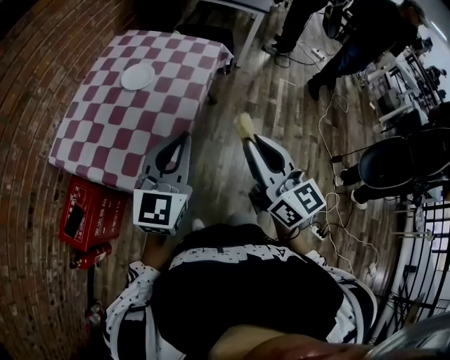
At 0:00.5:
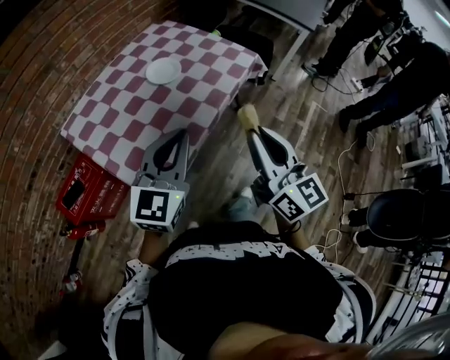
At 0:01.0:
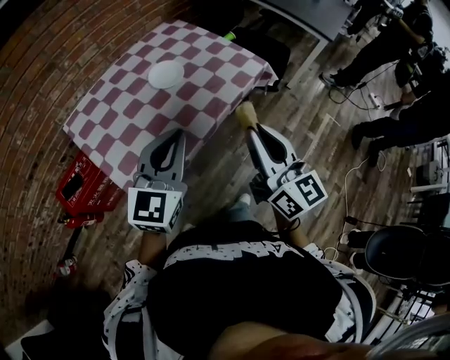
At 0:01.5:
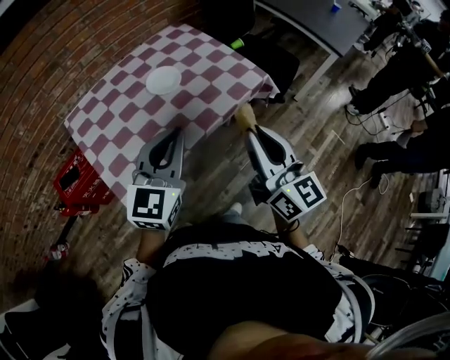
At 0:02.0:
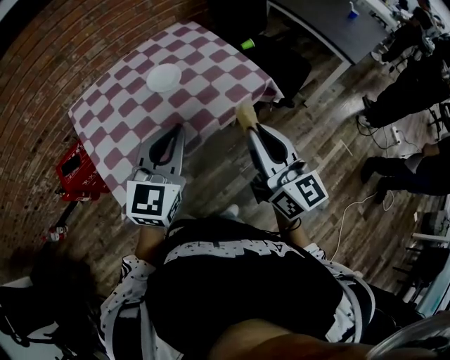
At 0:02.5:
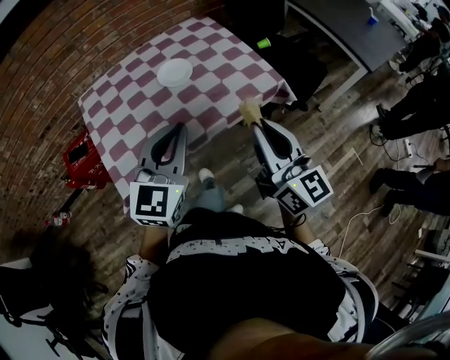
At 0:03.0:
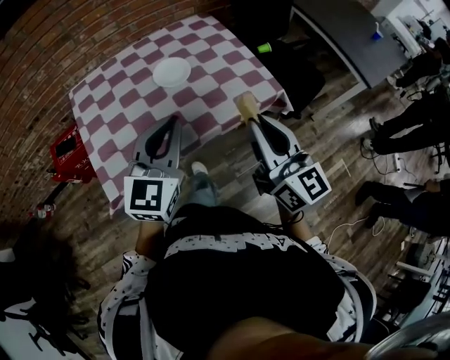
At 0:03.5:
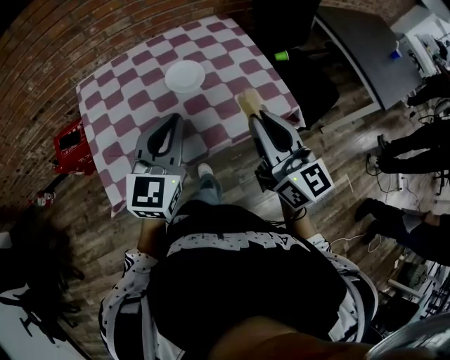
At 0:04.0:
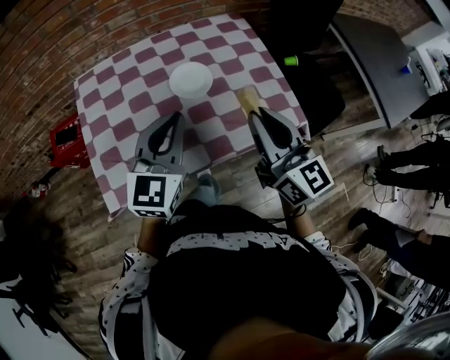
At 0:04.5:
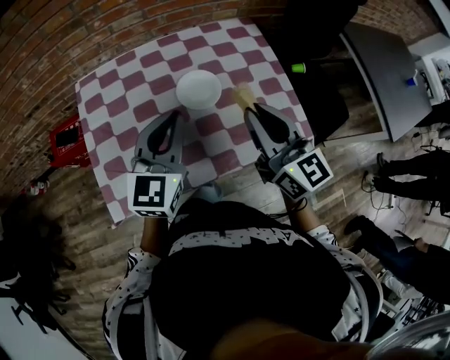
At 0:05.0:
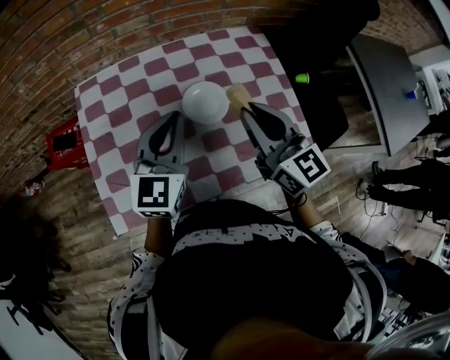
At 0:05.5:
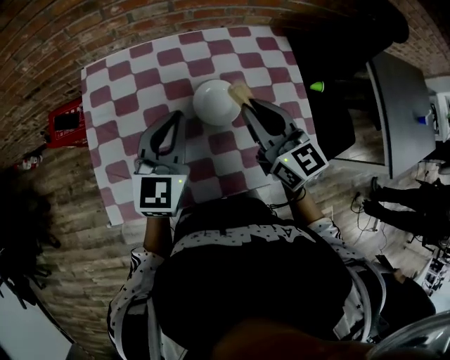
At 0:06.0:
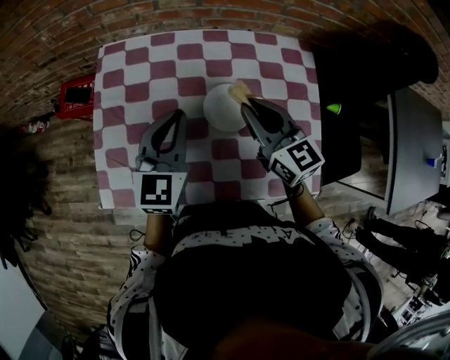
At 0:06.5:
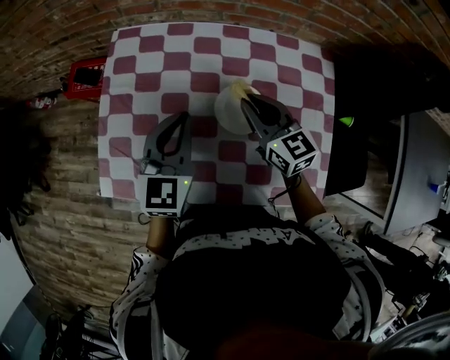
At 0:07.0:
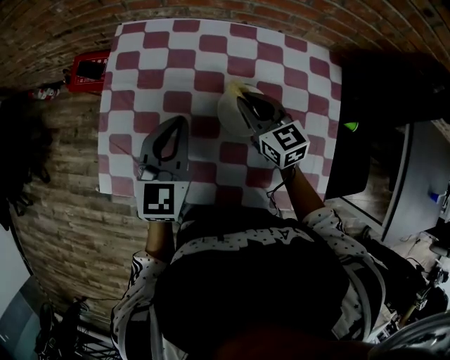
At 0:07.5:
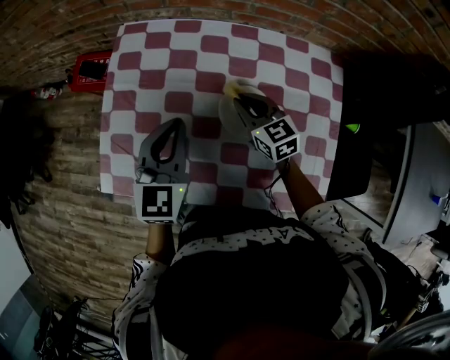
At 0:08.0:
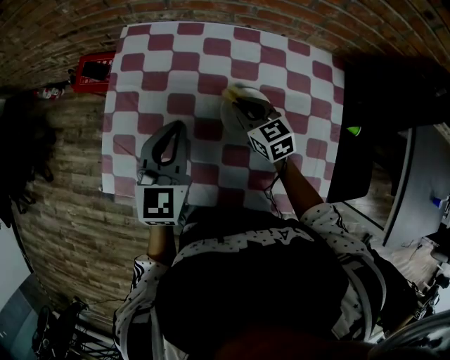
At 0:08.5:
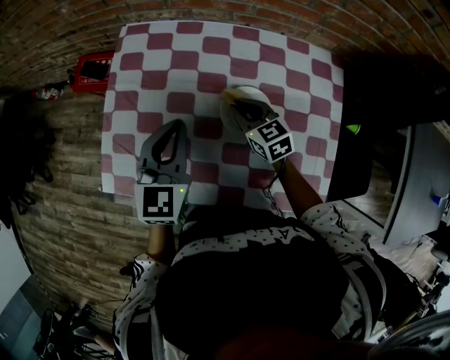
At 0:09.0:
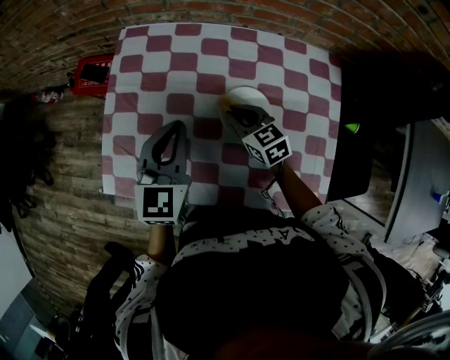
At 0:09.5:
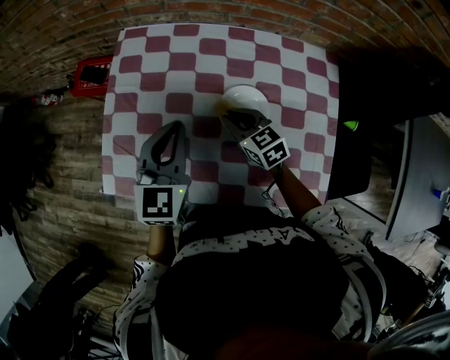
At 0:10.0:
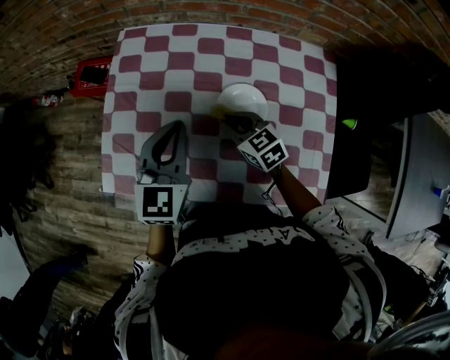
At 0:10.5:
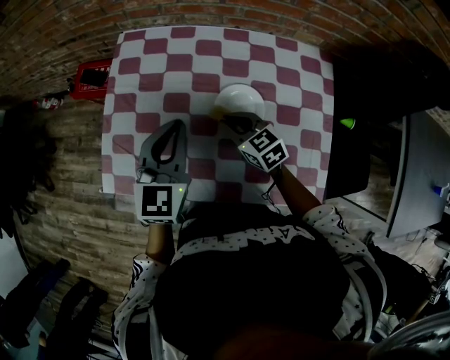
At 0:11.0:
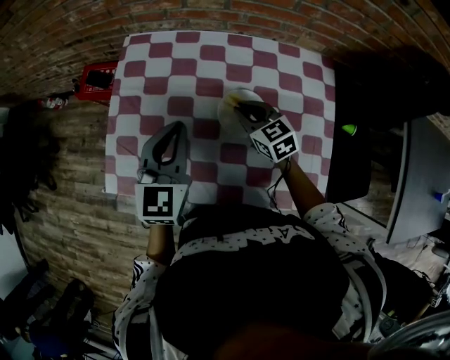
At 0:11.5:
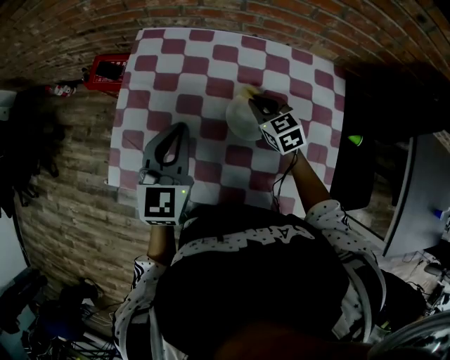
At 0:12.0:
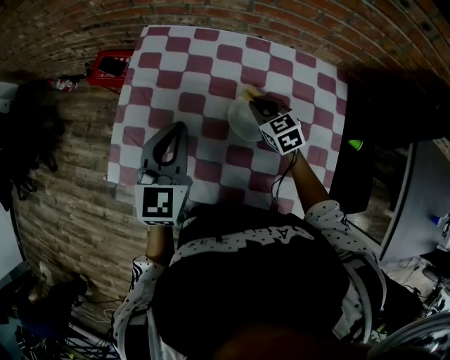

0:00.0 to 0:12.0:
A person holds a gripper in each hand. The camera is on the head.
0:00.0 to 0:02.0: The right gripper changes place by roughly 30 cm, and swivels approximately 30 degrees. The left gripper ends up roughly 20 cm from where it was, and turns by roughly 40 degrees.
0:02.0 to 0:04.0: Both grippers move forward, about 20 cm.
0:04.0 to 0:06.0: The two grippers go roughly 20 cm forward. The left gripper rotates roughly 20 degrees. Meanwhile the right gripper swivels some 30 degrees.
0:06.0 to 0:08.0: The right gripper goes some 15 cm downward and forward, and changes its angle by about 20 degrees.
0:08.0 to 0:10.0: The right gripper heads backward, covering some 5 cm.
0:10.0 to 0:12.0: The right gripper shifts roughly 10 cm to the right and forward.

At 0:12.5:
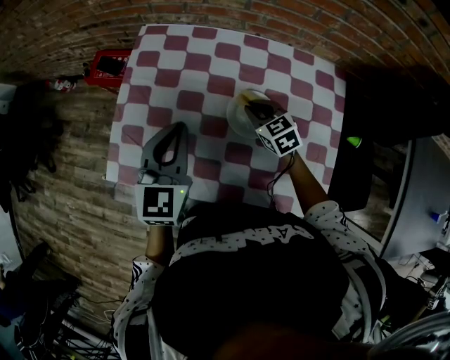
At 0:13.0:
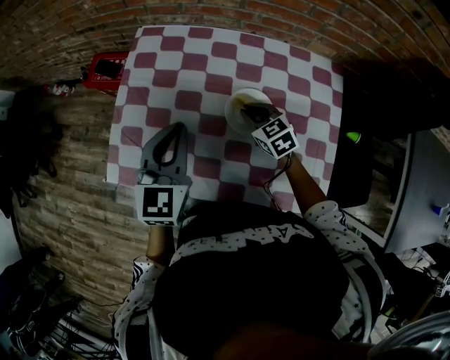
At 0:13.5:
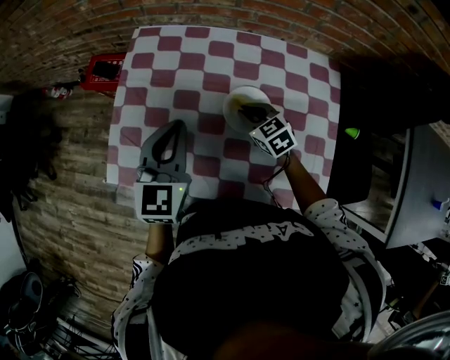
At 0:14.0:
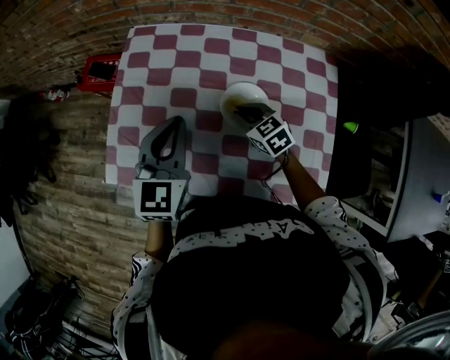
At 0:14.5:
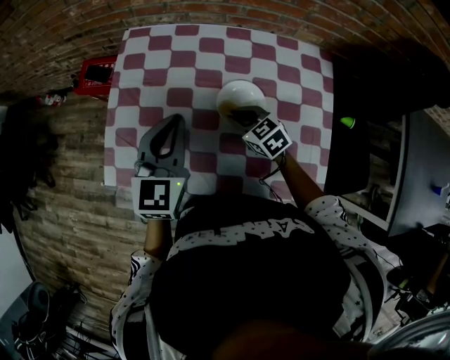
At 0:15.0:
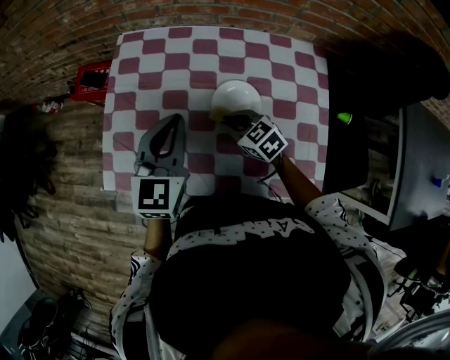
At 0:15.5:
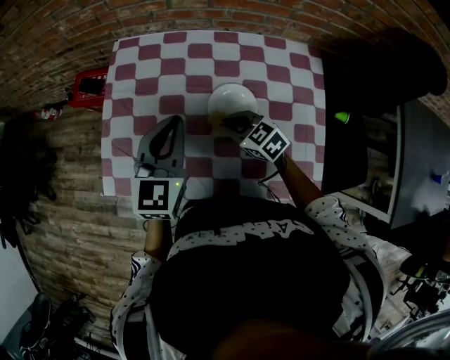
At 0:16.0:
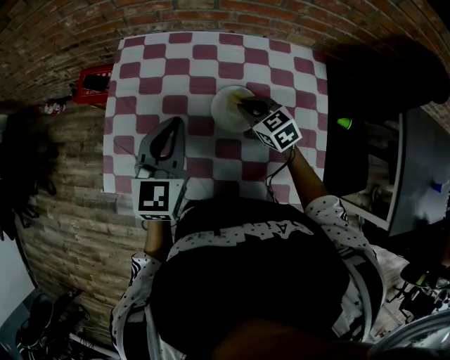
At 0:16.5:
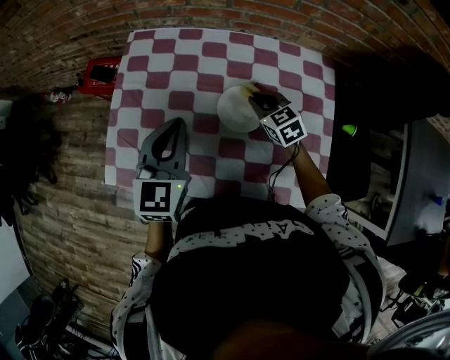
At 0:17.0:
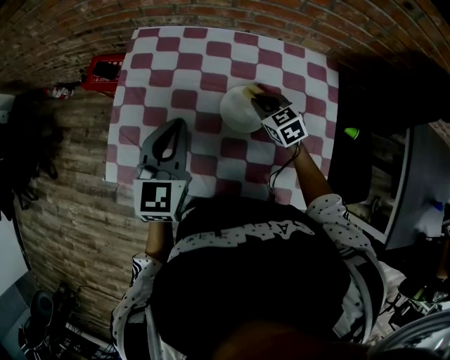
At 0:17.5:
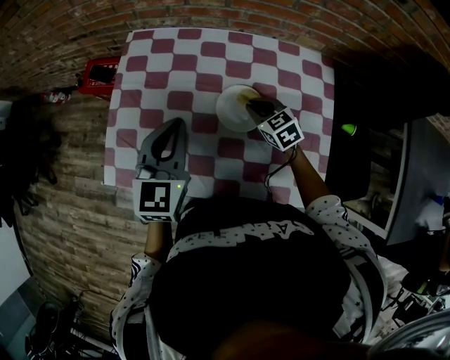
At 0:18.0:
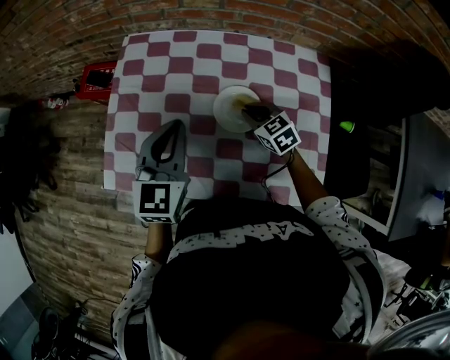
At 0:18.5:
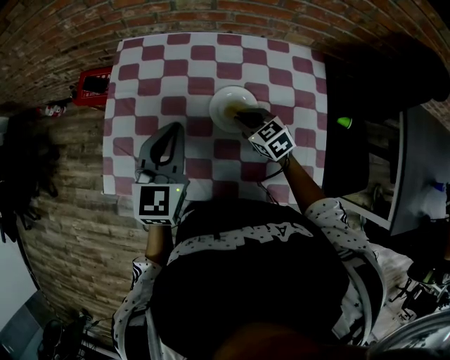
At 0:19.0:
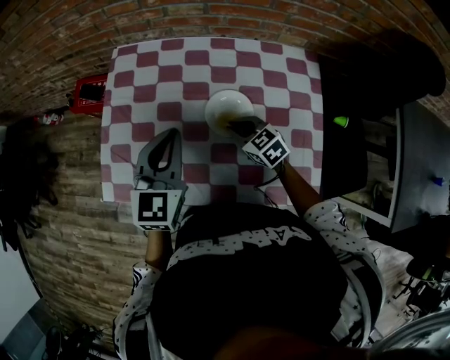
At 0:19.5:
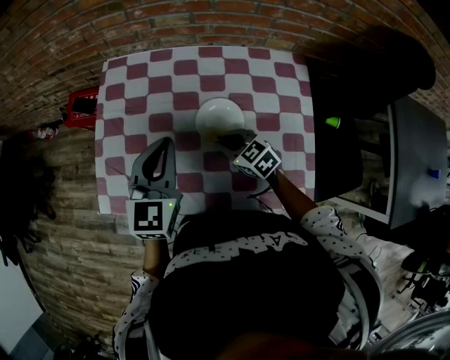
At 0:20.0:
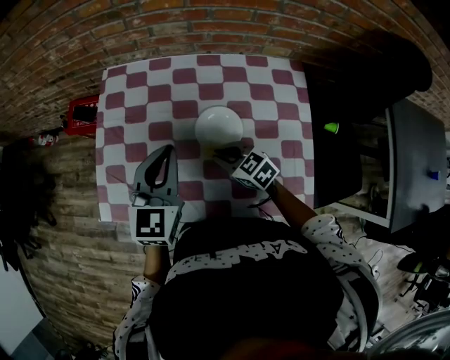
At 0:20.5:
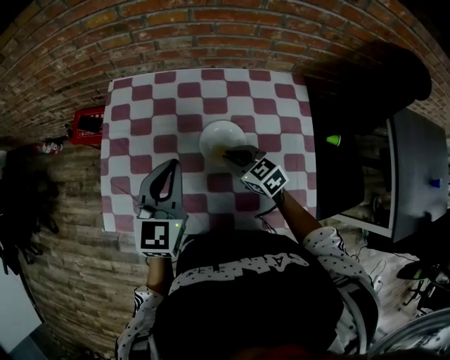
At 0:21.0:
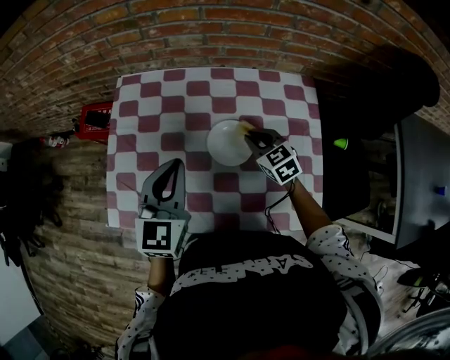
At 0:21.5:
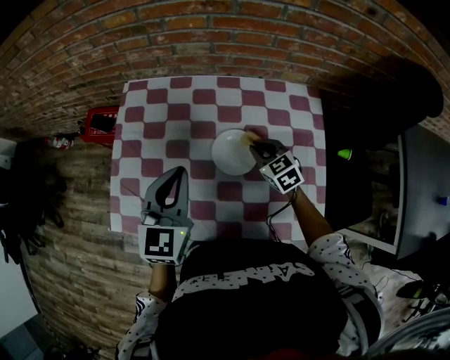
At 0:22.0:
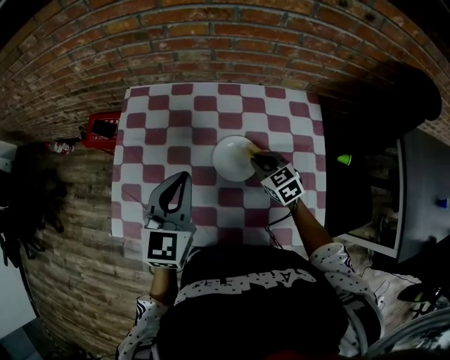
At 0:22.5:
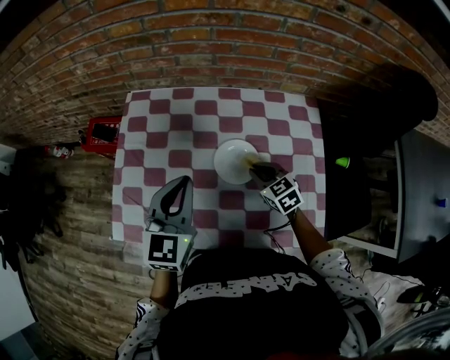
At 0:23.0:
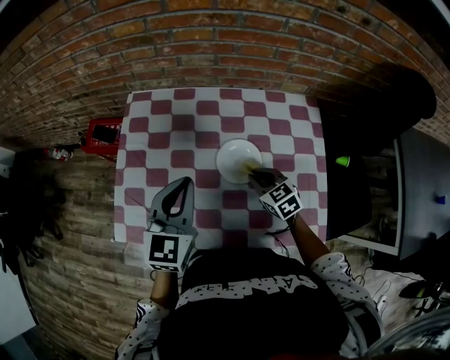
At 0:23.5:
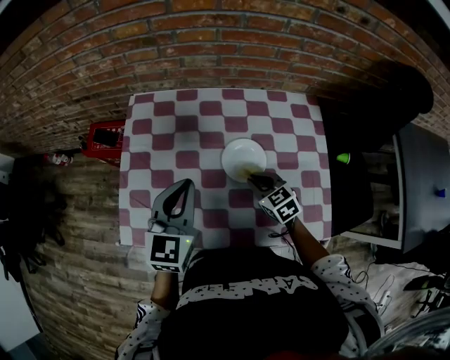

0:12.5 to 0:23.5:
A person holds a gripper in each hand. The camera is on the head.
0:12.5 to 0:14.5: The right gripper shifts about 5 cm backward.
0:14.5 to 0:16.0: The right gripper is displaced to the right by some 5 cm.
0:16.0 to 0:18.0: There are only small adjustments of the grippers.
0:18.0 to 0:20.0: The right gripper moves to the left and backward, approximately 10 cm.
0:20.0 to 0:21.5: The right gripper travels to the right and forward by some 15 cm, and changes its angle by some 20 degrees.
0:21.5 to 0:23.5: The right gripper heads backward and to the left, covering approximately 10 cm.

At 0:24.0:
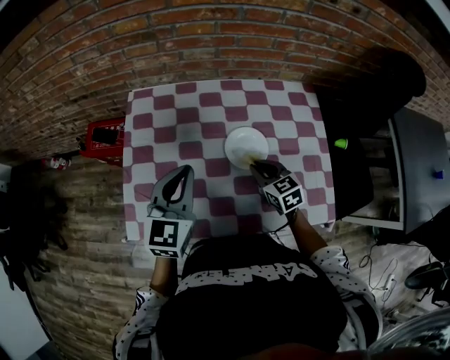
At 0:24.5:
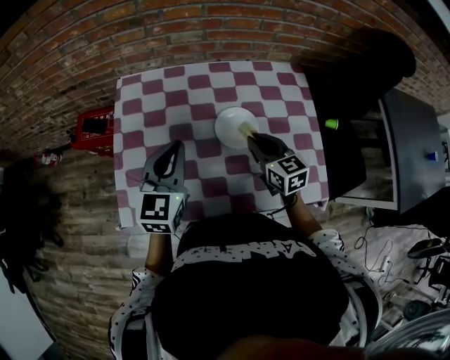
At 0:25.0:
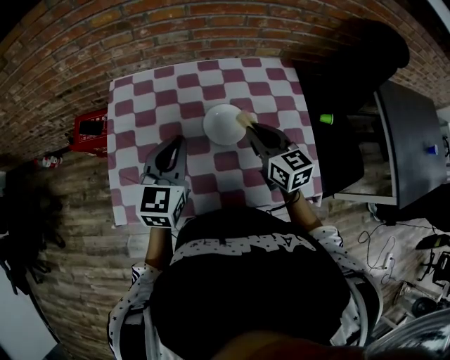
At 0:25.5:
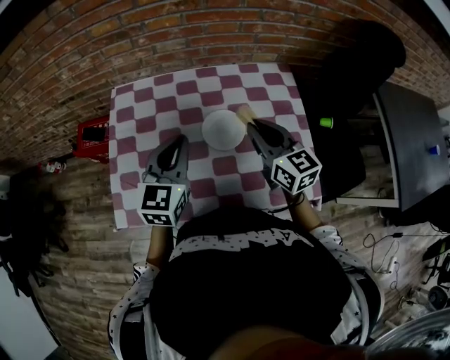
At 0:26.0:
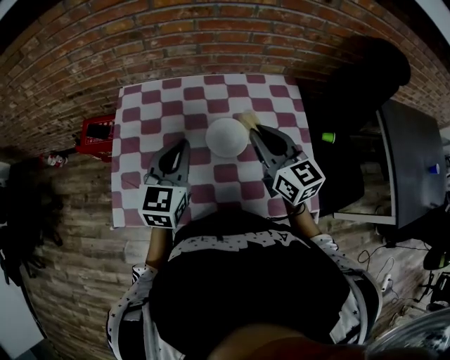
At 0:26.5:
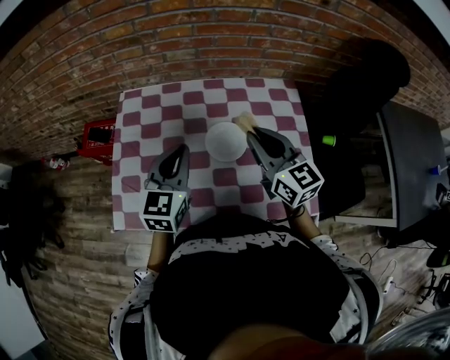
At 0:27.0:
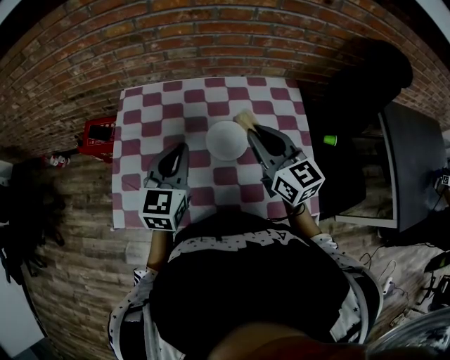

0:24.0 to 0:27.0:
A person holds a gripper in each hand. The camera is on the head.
0:24.0 to 0:25.5: The right gripper is displaced upward by about 15 cm, and changes its angle by about 30 degrees; the left gripper moves to the right, approximately 5 cm.
0:25.5 to 0:27.0: The grippers stay close to where they were, moving slightly.

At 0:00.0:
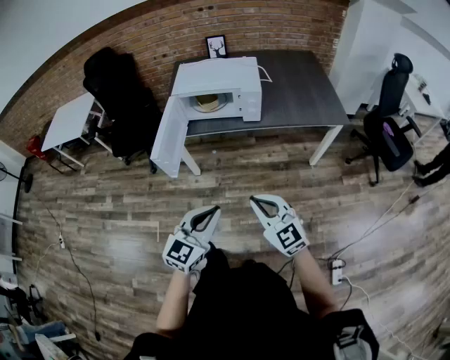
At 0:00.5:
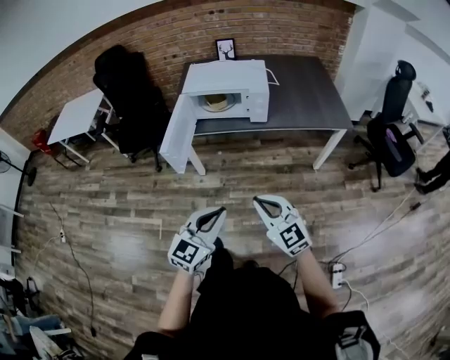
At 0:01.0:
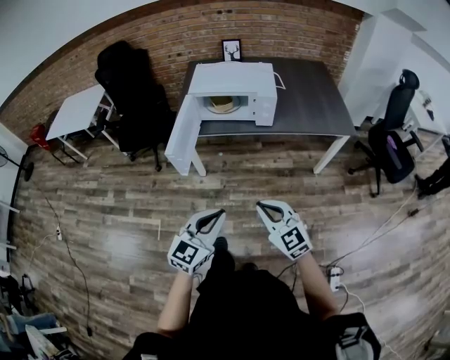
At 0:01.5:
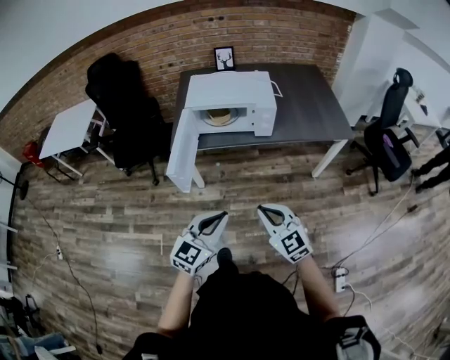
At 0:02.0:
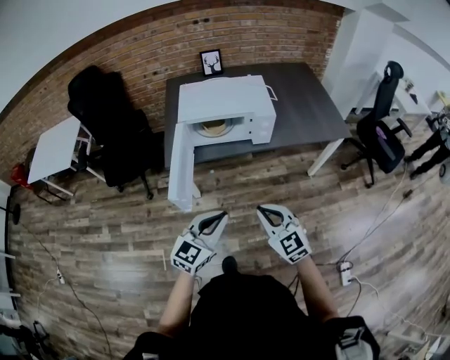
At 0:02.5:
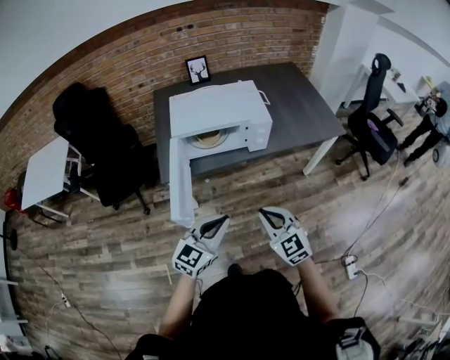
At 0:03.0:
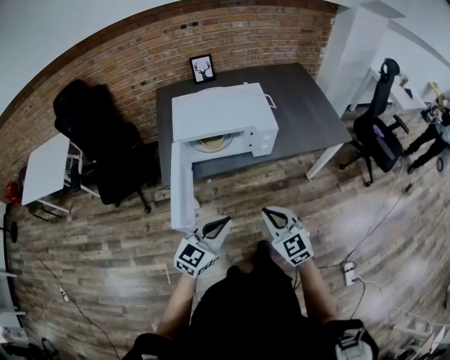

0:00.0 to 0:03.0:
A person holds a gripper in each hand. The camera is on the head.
0:00.0 to 0:01.5: Both grippers travel together to the left, approximately 5 cm.
0:01.5 to 0:03.0: Both grippers move forward, about 15 cm.
